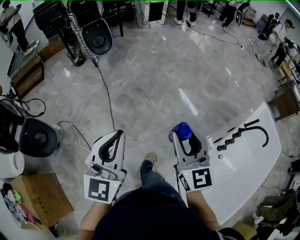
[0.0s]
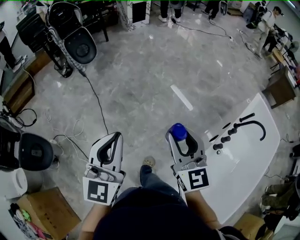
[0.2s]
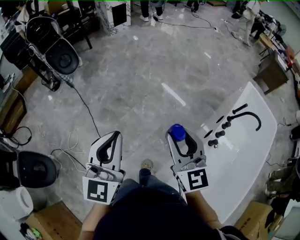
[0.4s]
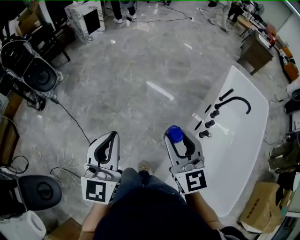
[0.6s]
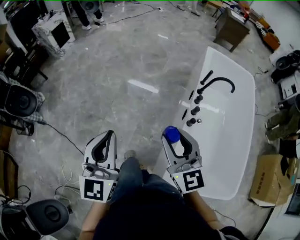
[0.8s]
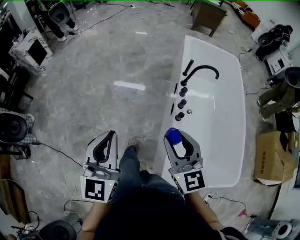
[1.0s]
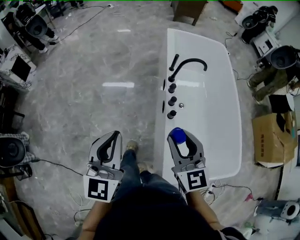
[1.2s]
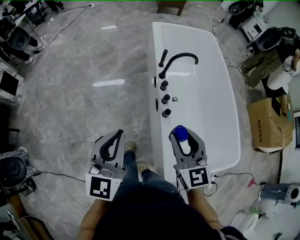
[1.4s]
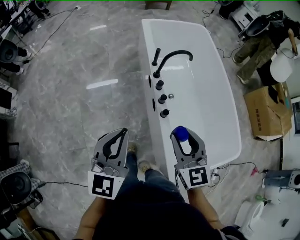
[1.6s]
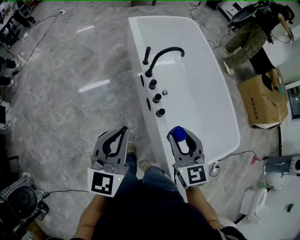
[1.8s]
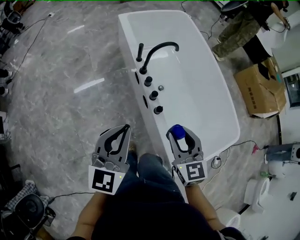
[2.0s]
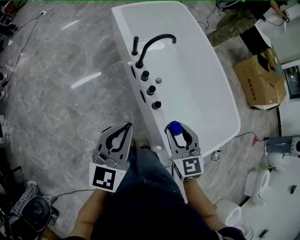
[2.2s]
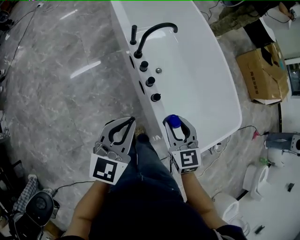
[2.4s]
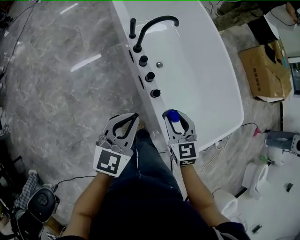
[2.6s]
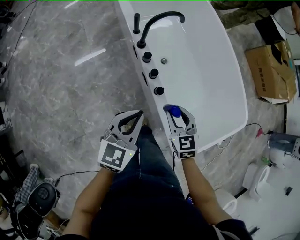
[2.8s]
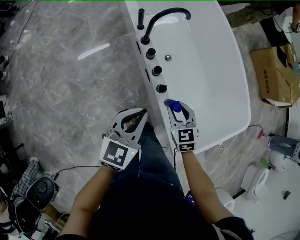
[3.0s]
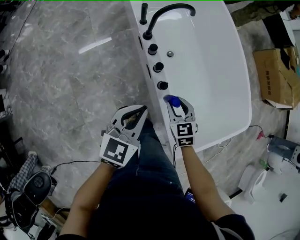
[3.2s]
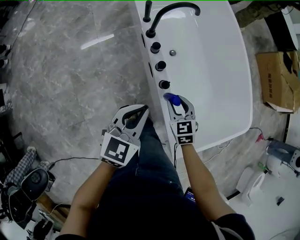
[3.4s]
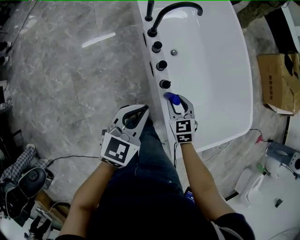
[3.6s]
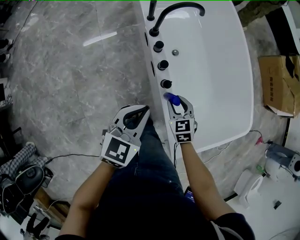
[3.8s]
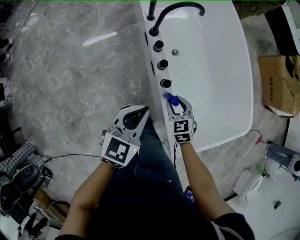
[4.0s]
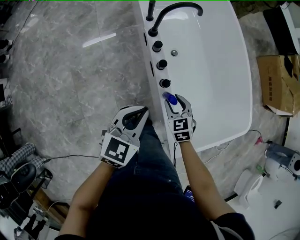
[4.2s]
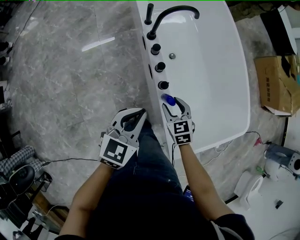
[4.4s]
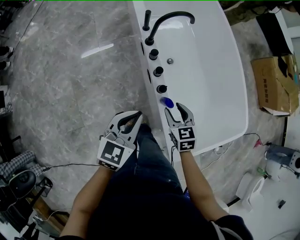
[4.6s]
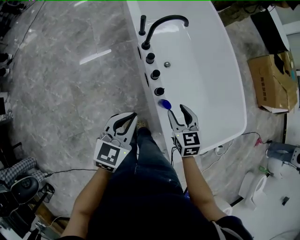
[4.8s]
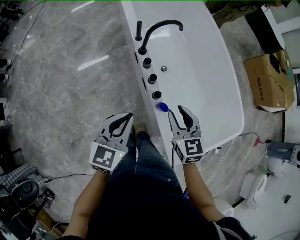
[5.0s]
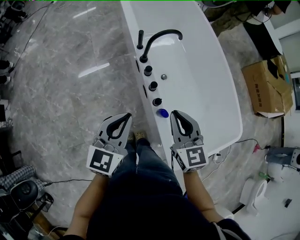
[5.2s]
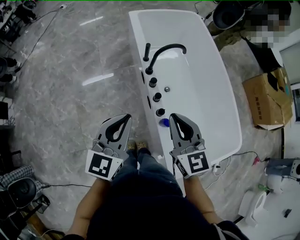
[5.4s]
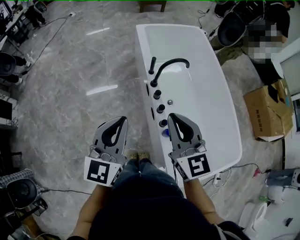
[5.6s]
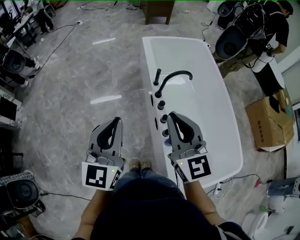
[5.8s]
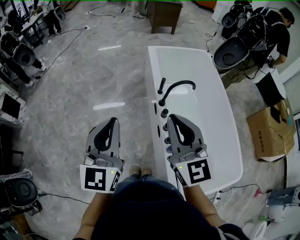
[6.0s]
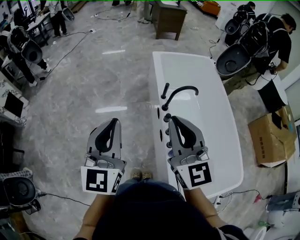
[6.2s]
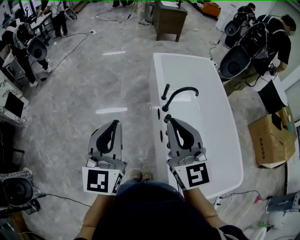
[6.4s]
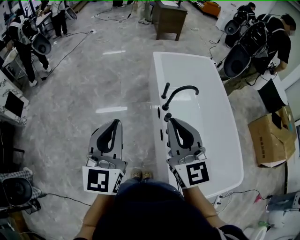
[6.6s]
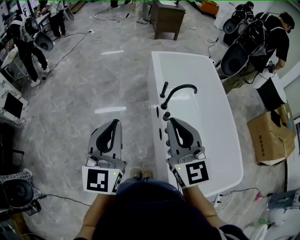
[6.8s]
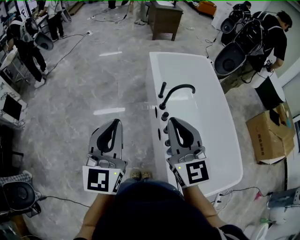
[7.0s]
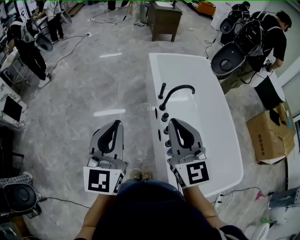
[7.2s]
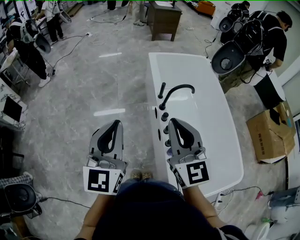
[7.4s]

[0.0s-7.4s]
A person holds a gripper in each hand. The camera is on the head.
0.0s to 1.4s: The left gripper shifts by about 50 cm, and rotates some 70 degrees; the right gripper shifts by about 40 cm, and rotates roughly 70 degrees.
1.4s to 3.0s: Both grippers travel together downward, approximately 25 cm. The left gripper turns by approximately 40 degrees. Meanwhile the right gripper changes its angle by about 30 degrees.
3.0s to 4.4s: The grippers stay close to where they were, moving slightly.
4.4s to 6.0s: The right gripper shifts roughly 40 cm upward, tilts its fingers approximately 50 degrees upward, and closes up. The left gripper shifts some 35 cm upward and to the left, and points its fingers roughly 30 degrees further upward.
6.0s to 7.4s: The grippers move only a little.

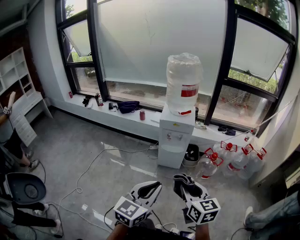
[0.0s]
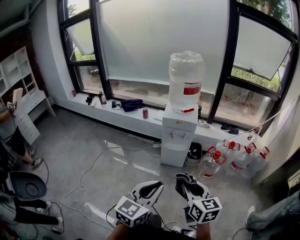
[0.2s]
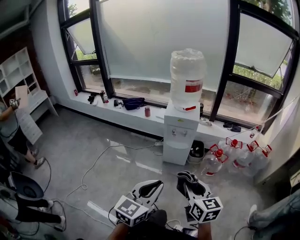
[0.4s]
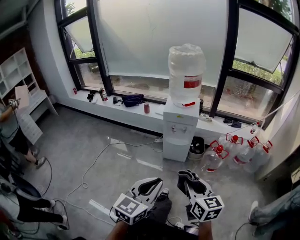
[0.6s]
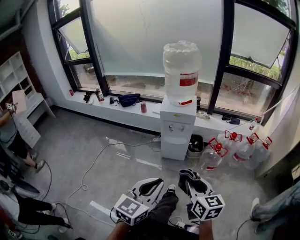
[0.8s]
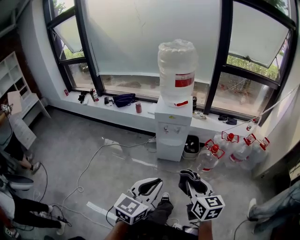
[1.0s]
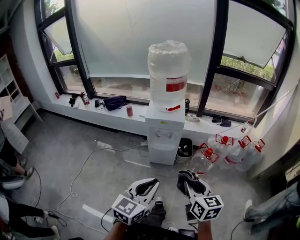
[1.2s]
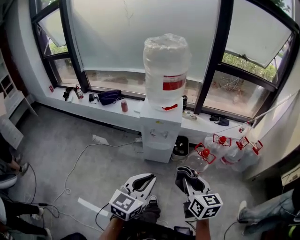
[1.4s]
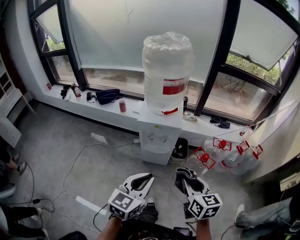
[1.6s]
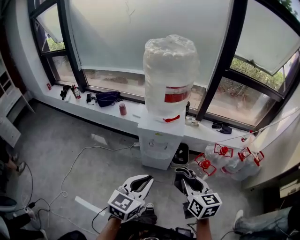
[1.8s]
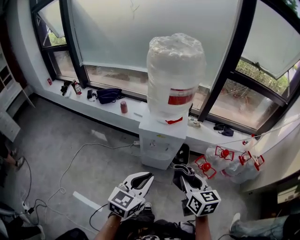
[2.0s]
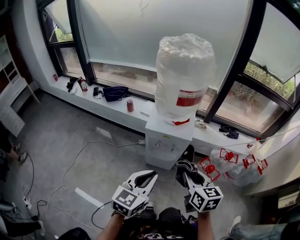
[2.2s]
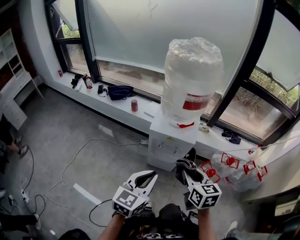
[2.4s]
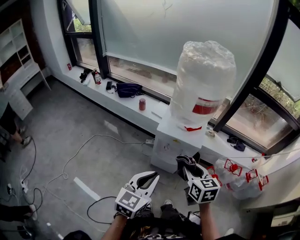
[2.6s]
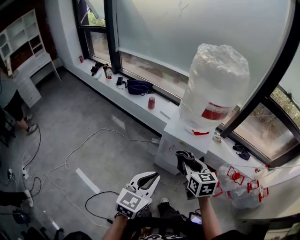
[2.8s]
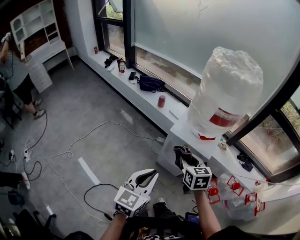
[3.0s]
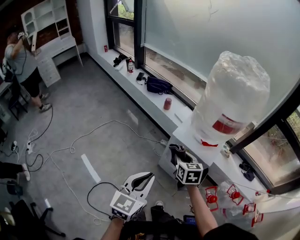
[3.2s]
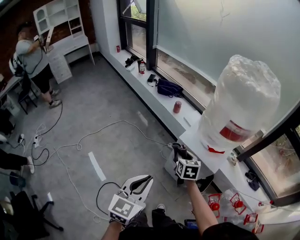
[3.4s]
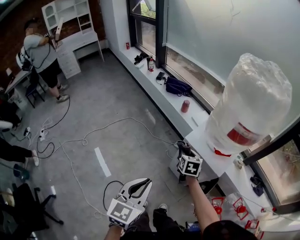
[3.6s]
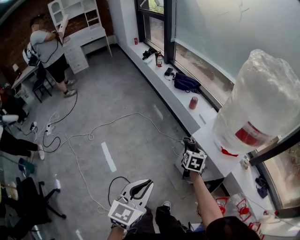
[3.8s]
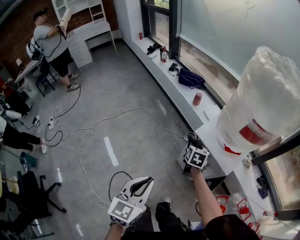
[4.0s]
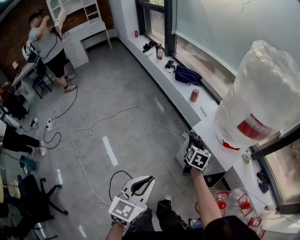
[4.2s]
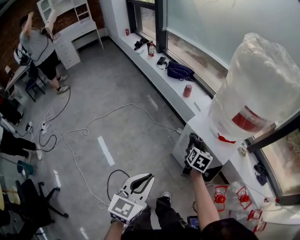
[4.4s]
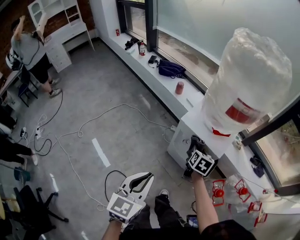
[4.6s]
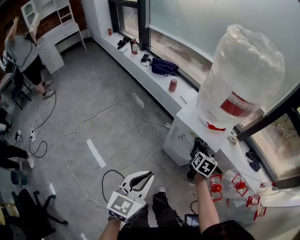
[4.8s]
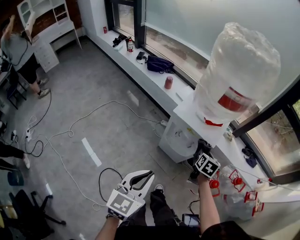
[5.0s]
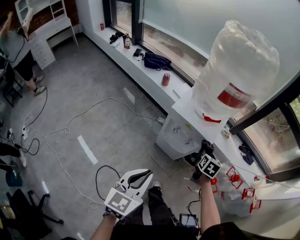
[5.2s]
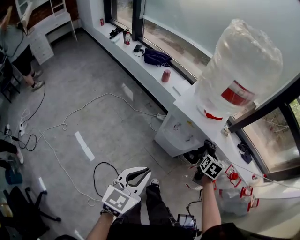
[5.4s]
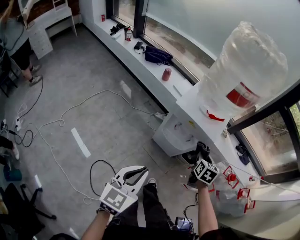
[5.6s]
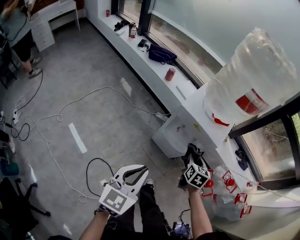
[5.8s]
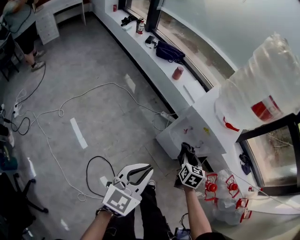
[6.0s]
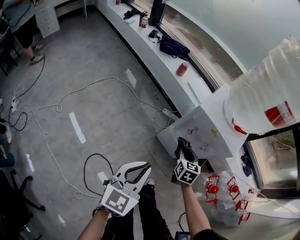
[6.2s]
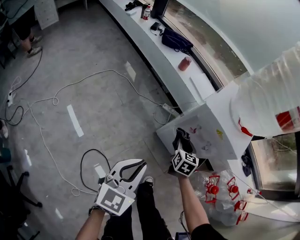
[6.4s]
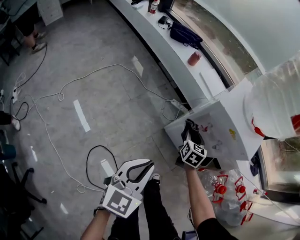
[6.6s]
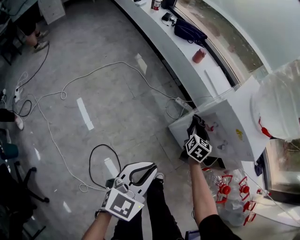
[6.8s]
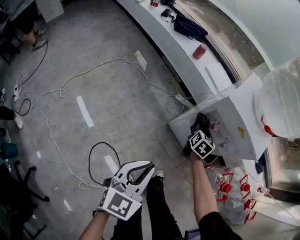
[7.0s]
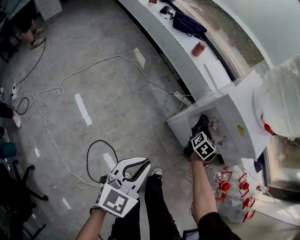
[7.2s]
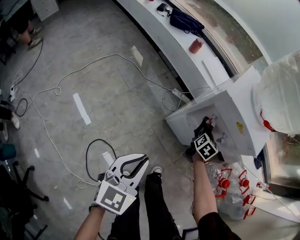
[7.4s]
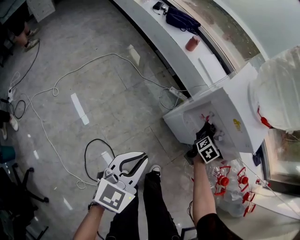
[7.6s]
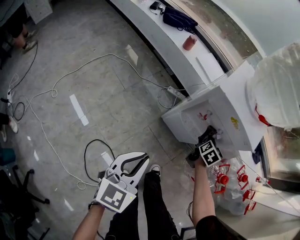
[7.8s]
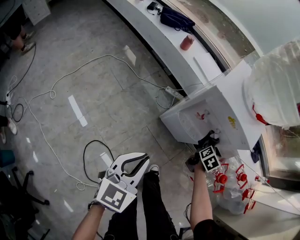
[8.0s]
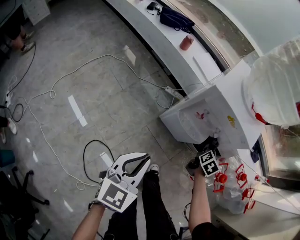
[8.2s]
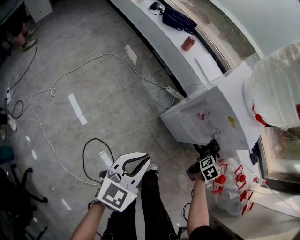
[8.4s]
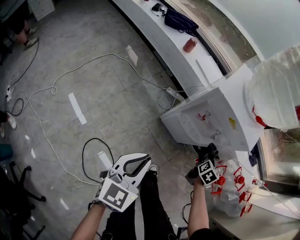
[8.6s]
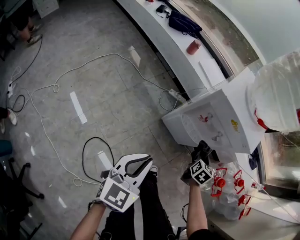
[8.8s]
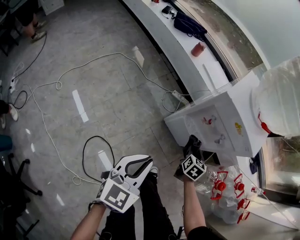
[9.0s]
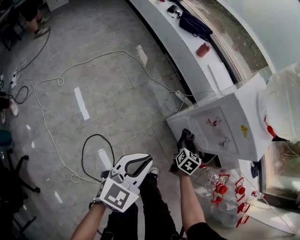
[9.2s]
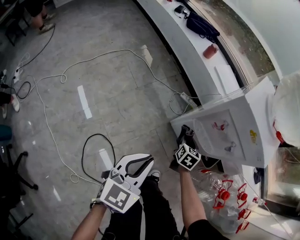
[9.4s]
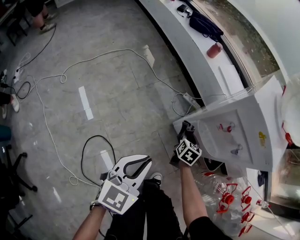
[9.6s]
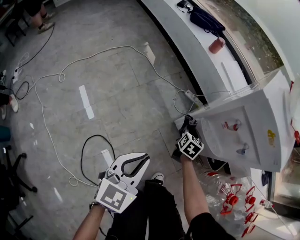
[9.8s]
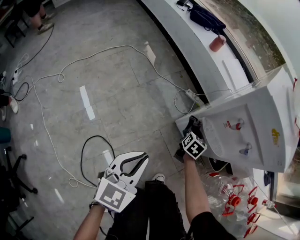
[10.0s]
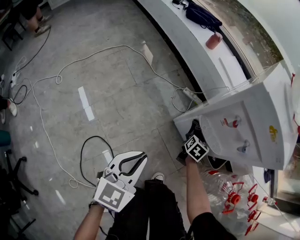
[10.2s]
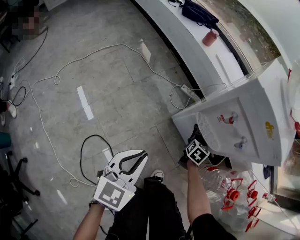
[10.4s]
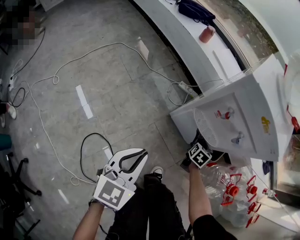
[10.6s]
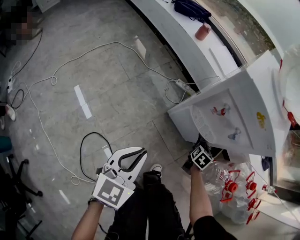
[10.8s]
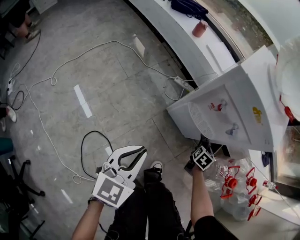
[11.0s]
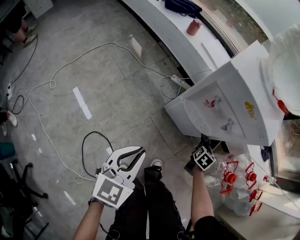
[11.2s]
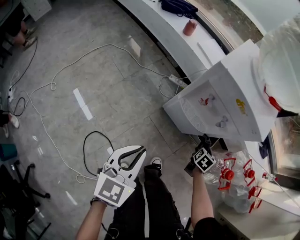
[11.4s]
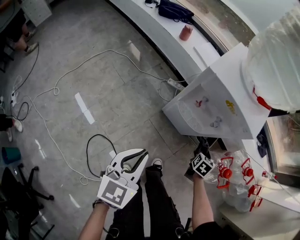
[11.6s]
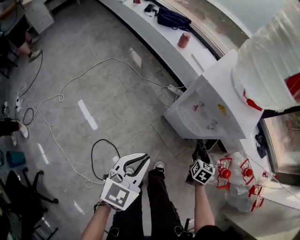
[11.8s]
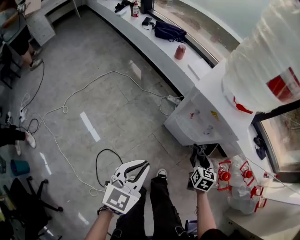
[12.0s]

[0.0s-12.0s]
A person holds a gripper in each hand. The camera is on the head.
0.0s to 1.6s: Both grippers move forward, roughly 25 cm.
1.6s to 3.0s: The left gripper is displaced forward and to the left by some 15 cm, and changes its angle by about 30 degrees, while the right gripper travels forward and to the left by roughly 30 cm, and rotates roughly 30 degrees.
3.0s to 4.4s: The left gripper shifts by roughly 5 cm. Meanwhile the right gripper goes some 15 cm downward and forward.
4.4s to 6.0s: The left gripper goes about 10 cm downward. The right gripper is displaced backward and downward by approximately 15 cm, and goes to the right and returns, approximately 20 cm each way.
6.0s to 7.6s: The right gripper heads downward and forward, covering approximately 20 cm, and changes its angle by roughly 30 degrees, while the left gripper travels downward and to the left by about 15 cm.
7.6s to 9.0s: The right gripper is displaced backward by about 10 cm, reaches some 10 cm to the right, then returns, and changes its angle by roughly 20 degrees.
9.0s to 10.4s: The left gripper is displaced downward by approximately 15 cm; the right gripper moves downward and forward, approximately 20 cm.
10.4s to 12.0s: The two grippers go some 25 cm upward.

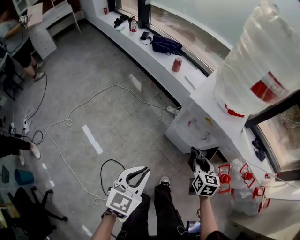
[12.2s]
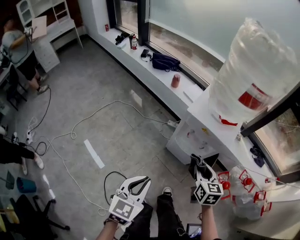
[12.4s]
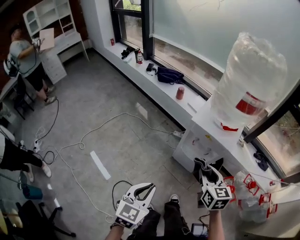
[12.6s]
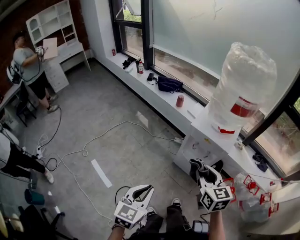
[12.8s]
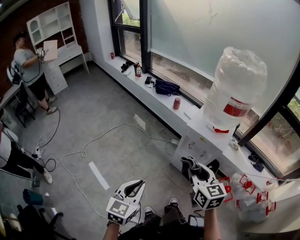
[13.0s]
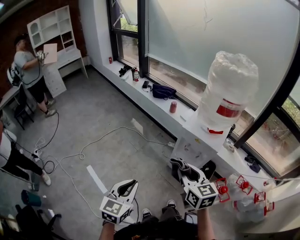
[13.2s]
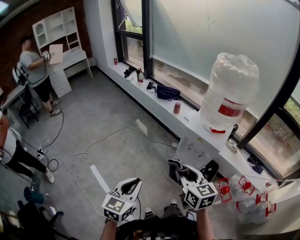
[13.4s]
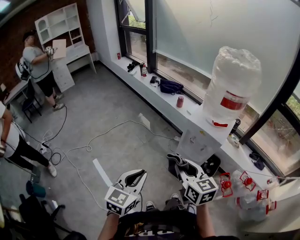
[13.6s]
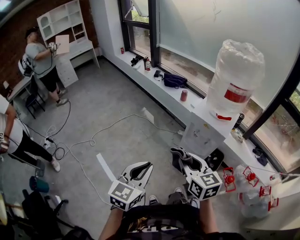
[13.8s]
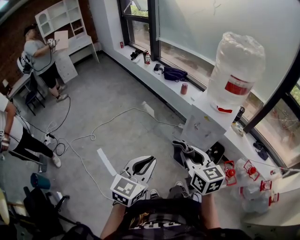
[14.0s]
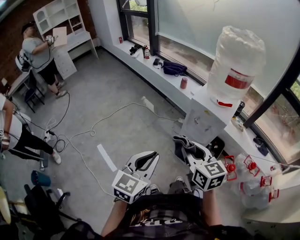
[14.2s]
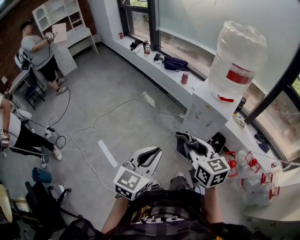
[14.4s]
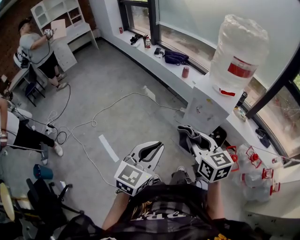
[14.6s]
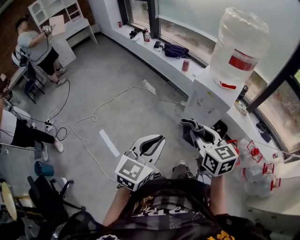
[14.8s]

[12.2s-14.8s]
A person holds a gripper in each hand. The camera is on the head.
12.2s to 13.4s: The right gripper is displaced upward, to the left and backward by roughly 35 cm, and changes its angle by roughly 30 degrees. The left gripper travels upward, backward and to the left by approximately 20 cm.
13.4s to 14.8s: The left gripper travels to the right by roughly 5 cm.

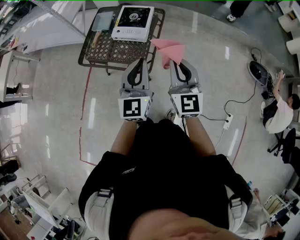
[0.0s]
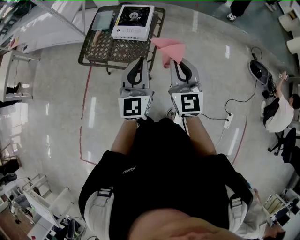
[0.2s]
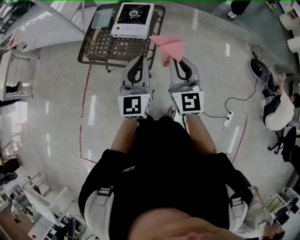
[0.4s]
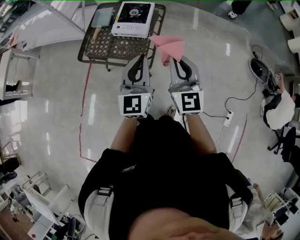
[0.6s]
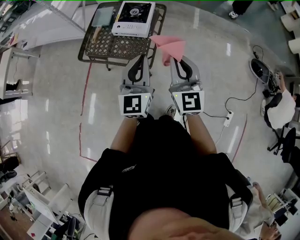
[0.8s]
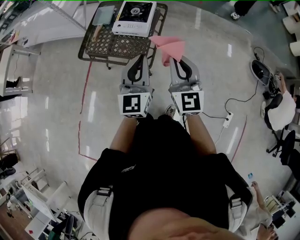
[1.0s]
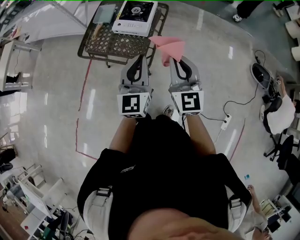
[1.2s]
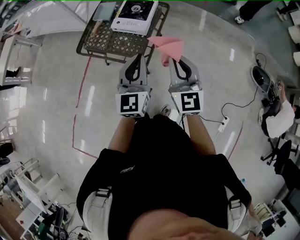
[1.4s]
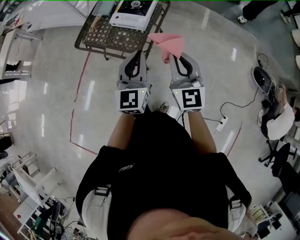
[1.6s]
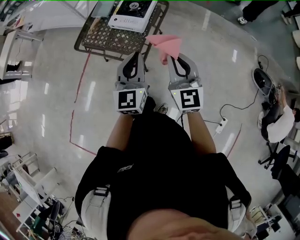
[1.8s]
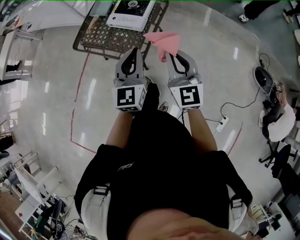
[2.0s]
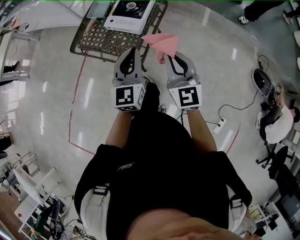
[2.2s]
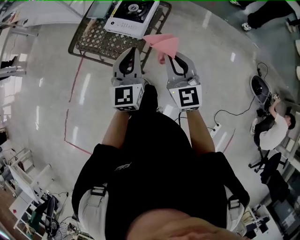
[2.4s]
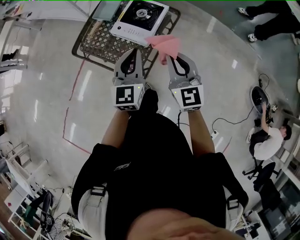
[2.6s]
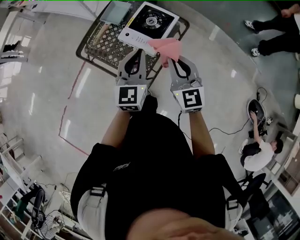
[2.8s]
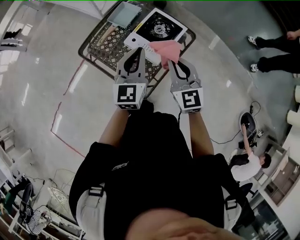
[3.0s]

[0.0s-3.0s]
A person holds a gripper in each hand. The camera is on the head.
0.0s to 1.6s: The left gripper changes place by some 5 cm. Meanwhile the right gripper ends up about 5 cm from where it was.
1.6s to 3.0s: Both grippers travel together forward, roughly 30 cm. The right gripper changes its angle by about 20 degrees.
